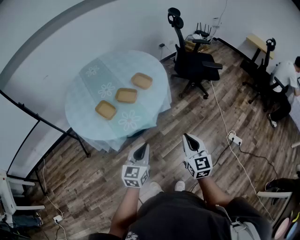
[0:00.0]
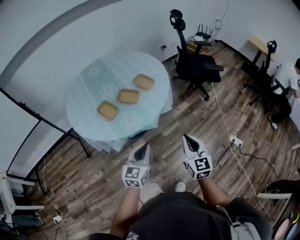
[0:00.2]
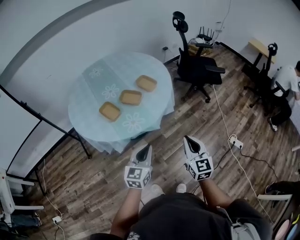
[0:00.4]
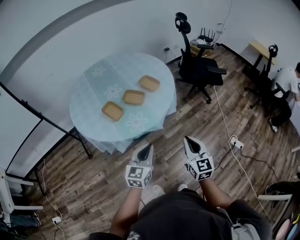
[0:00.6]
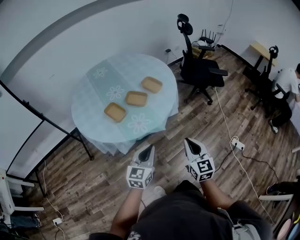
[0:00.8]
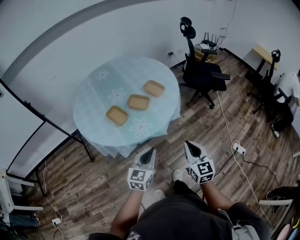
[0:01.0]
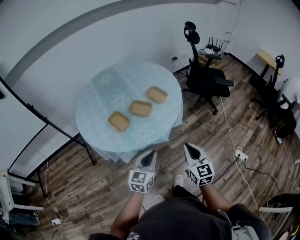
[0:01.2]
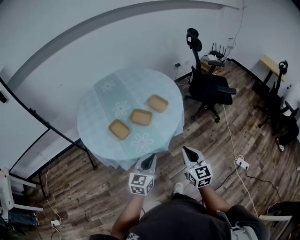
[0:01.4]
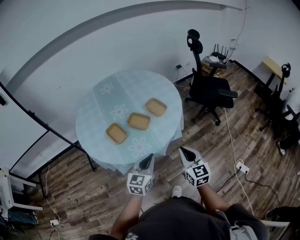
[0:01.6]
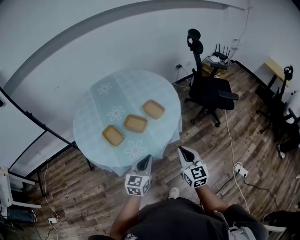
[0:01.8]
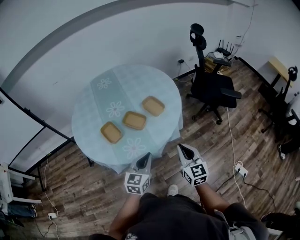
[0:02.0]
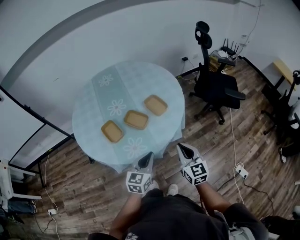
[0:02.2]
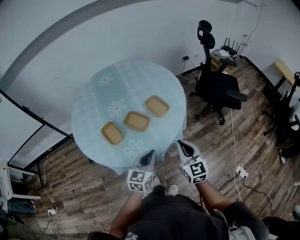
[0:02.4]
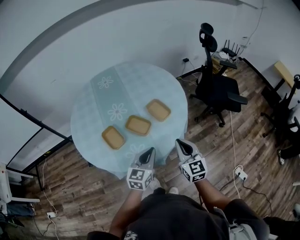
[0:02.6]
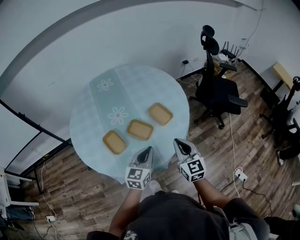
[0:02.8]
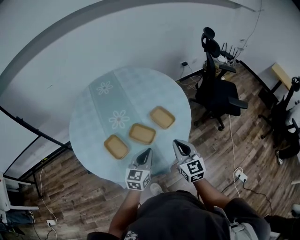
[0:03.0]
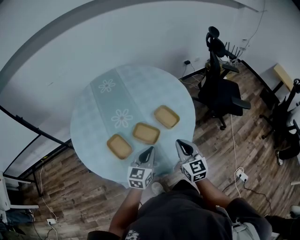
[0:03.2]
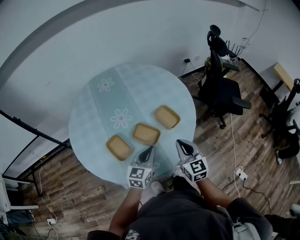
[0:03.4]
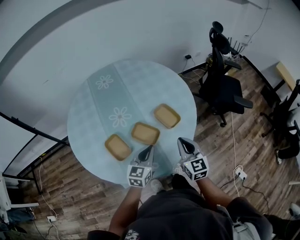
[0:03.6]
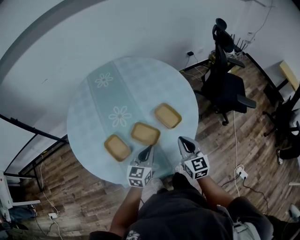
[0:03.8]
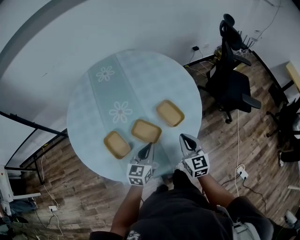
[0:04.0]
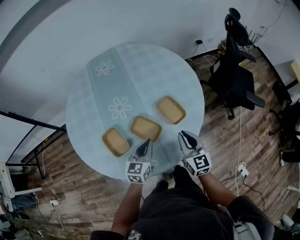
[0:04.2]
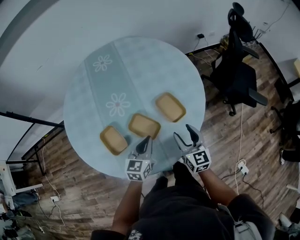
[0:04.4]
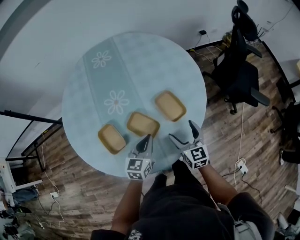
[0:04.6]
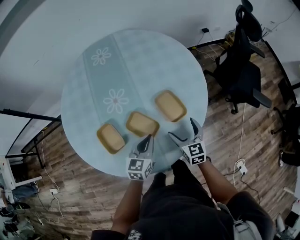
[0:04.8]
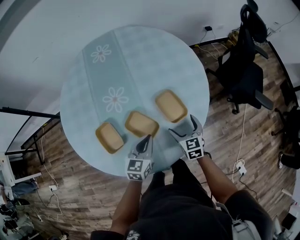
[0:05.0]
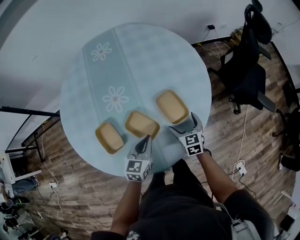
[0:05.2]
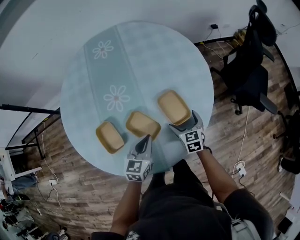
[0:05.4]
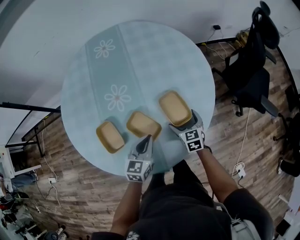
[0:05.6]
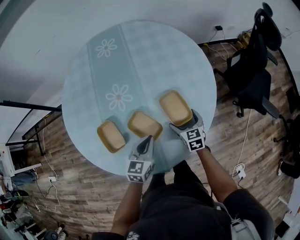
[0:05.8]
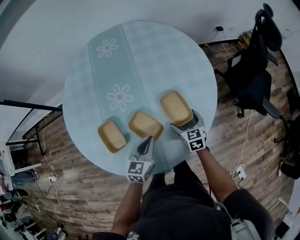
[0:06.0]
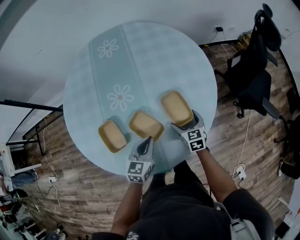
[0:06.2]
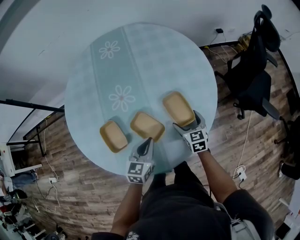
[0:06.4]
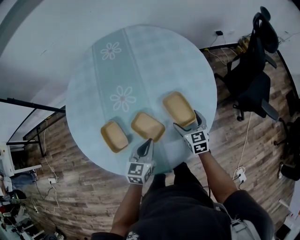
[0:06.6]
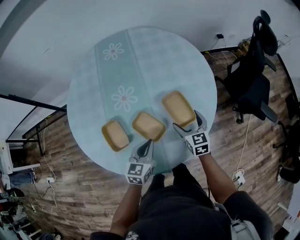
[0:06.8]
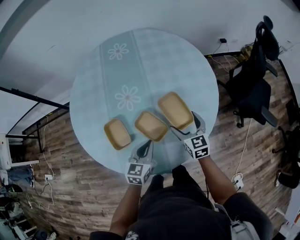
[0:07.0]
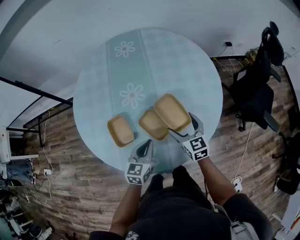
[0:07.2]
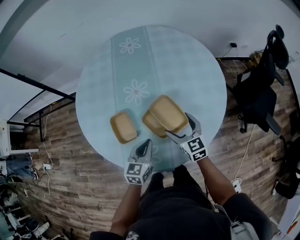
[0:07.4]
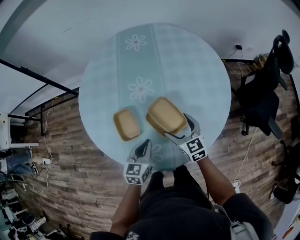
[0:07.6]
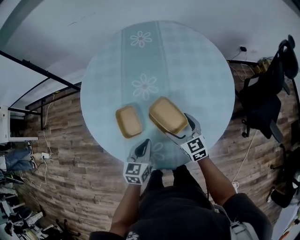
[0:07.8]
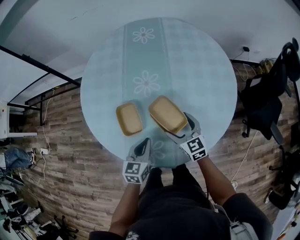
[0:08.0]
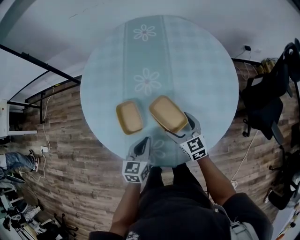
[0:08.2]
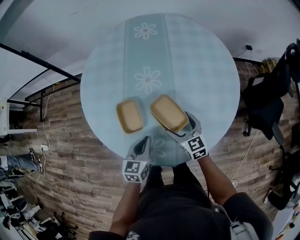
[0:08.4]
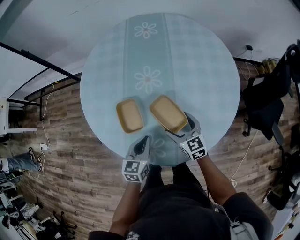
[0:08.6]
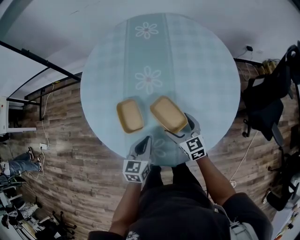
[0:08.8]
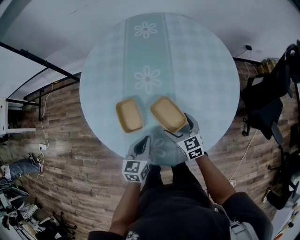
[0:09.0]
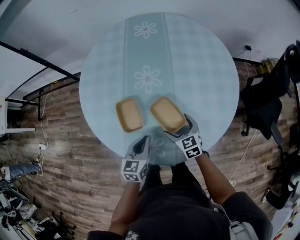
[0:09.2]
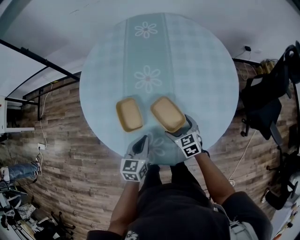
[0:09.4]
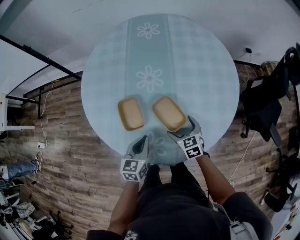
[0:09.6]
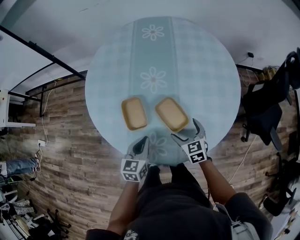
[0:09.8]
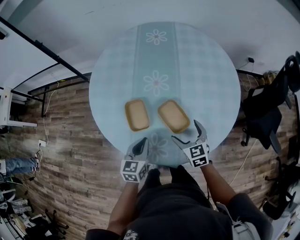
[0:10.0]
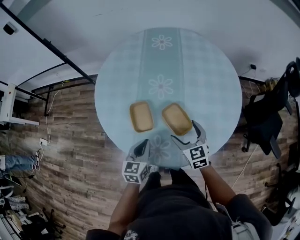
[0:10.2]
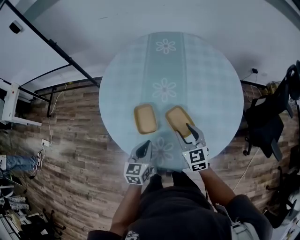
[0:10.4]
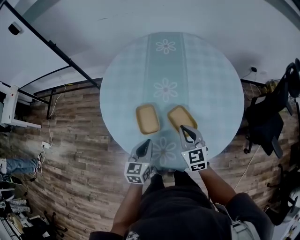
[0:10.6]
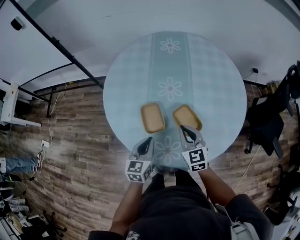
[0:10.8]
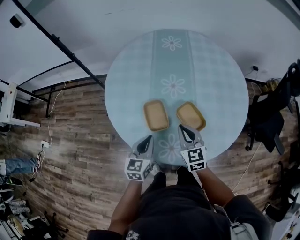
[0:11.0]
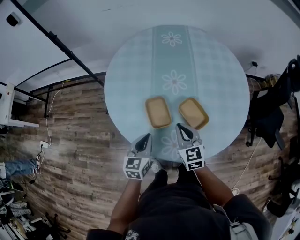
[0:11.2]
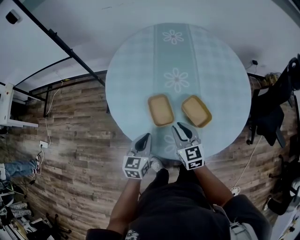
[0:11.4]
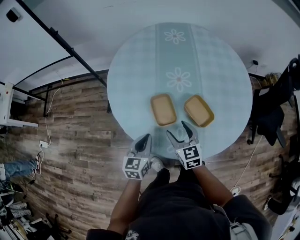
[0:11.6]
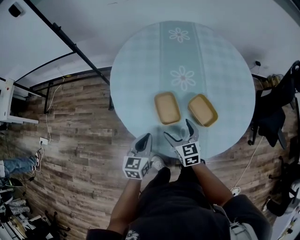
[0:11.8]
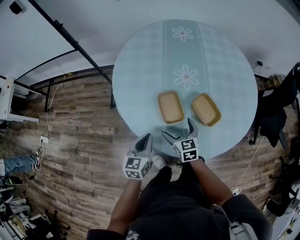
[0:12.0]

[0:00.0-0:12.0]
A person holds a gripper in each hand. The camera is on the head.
0:00.0 to 0:01.6: The left gripper goes approximately 10 cm forward. Meanwhile the right gripper goes approximately 15 cm forward and to the left.
0:01.6 to 0:03.0: Both grippers travel together forward, some 20 cm.
0:03.0 to 0:04.4: The two grippers go approximately 15 cm forward and downward. The right gripper opens.
0:04.4 to 0:06.0: The right gripper shifts approximately 20 cm downward and forward, rotates approximately 30 degrees, and opens up.
0:06.0 to 0:07.6: The left gripper shifts about 10 cm to the left and backward. Meanwhile the right gripper travels to the left and upward by some 15 cm, and turns by about 20 degrees.
0:07.6 to 0:09.0: The right gripper goes some 5 cm downward.
0:09.0 to 0:10.4: The left gripper travels to the left by roughly 5 cm; the right gripper goes approximately 10 cm upward, and closes its fingers.
0:10.4 to 0:12.0: The left gripper travels to the left by about 15 cm. Meanwhile the right gripper is displaced to the left and downward by about 20 cm, and opens its fingers.

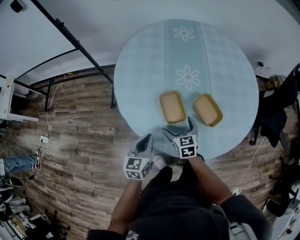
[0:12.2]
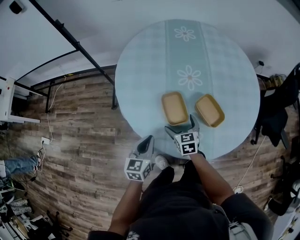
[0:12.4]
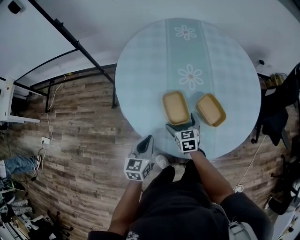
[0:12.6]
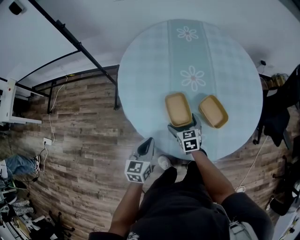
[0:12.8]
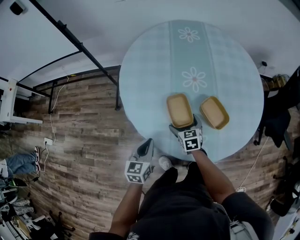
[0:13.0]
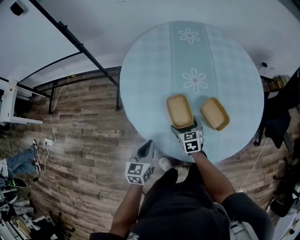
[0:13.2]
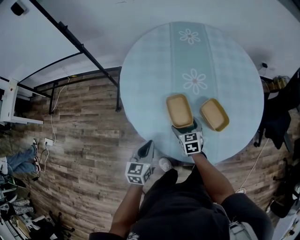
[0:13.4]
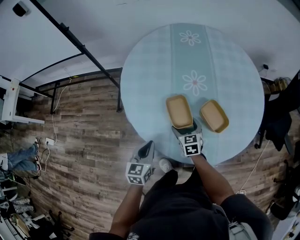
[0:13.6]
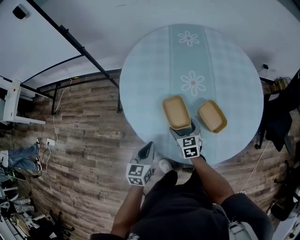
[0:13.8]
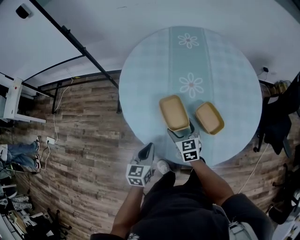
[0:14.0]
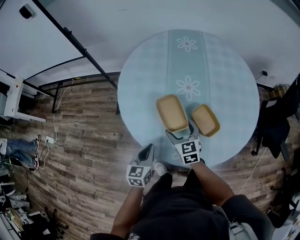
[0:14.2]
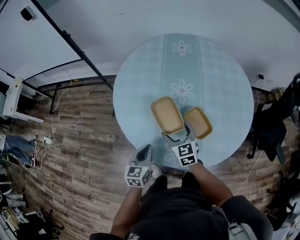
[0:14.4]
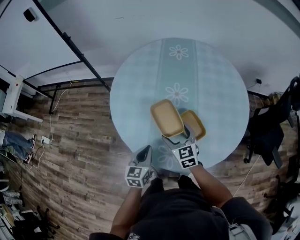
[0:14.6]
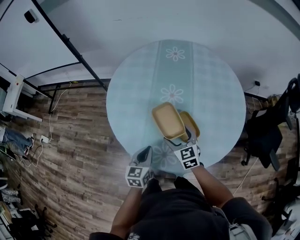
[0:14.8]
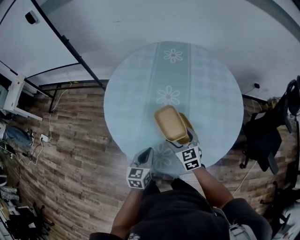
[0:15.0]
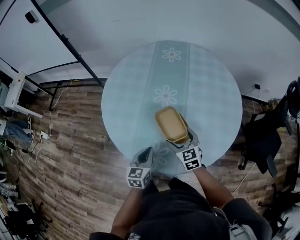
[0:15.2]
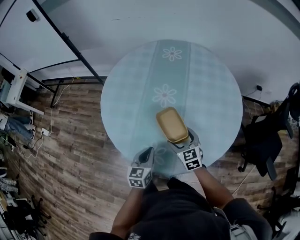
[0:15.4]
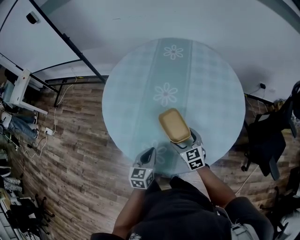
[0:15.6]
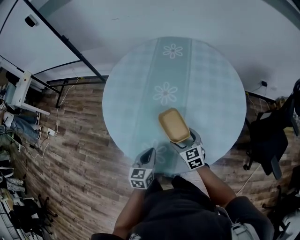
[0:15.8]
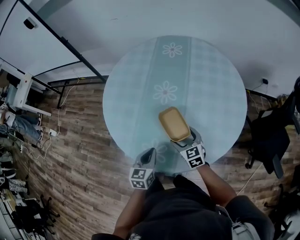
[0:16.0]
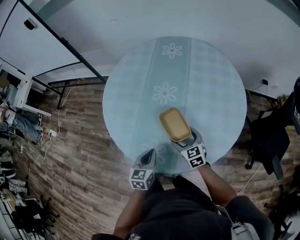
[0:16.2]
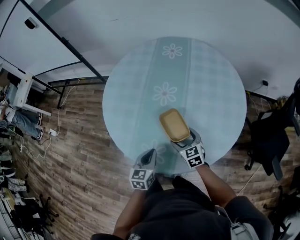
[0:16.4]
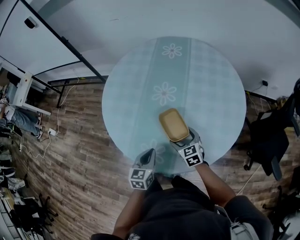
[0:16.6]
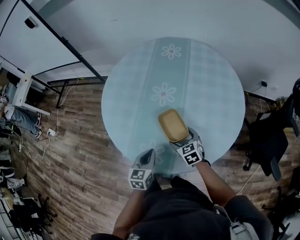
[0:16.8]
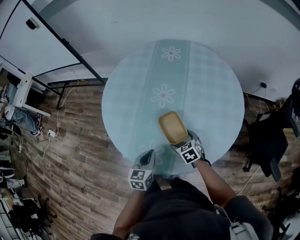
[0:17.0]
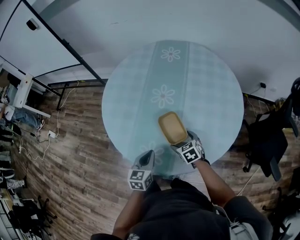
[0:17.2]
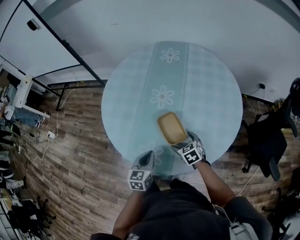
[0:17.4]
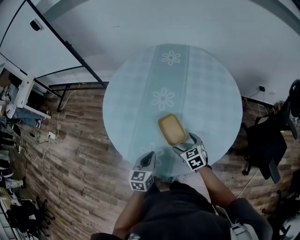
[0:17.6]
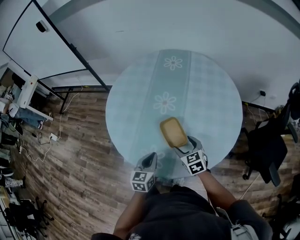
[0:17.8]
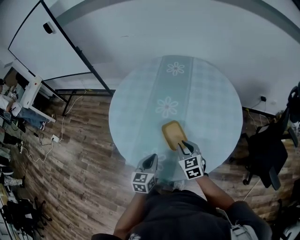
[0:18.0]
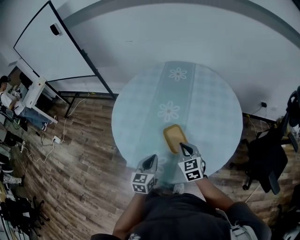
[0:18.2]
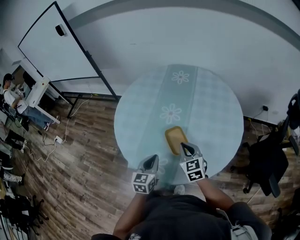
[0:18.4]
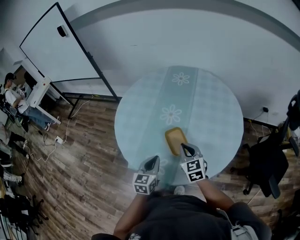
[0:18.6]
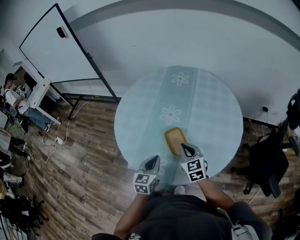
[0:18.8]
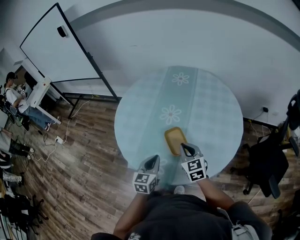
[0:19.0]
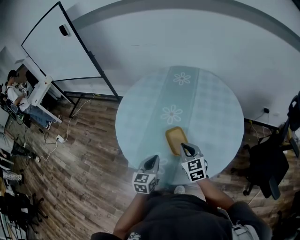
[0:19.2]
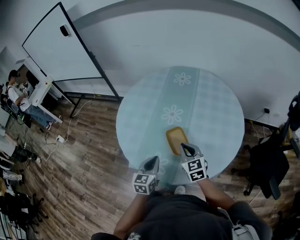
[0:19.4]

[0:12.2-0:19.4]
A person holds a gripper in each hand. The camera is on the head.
0:12.2 to 0:13.6: The grippers move only a little.
0:13.6 to 0:15.0: The right gripper heads to the right and upward, covering roughly 20 cm, and rotates some 20 degrees. The left gripper is displaced to the right by roughly 20 cm.
0:15.0 to 0:16.6: The left gripper is displaced to the right by approximately 5 cm; the right gripper travels downward and to the right by roughly 10 cm.
0:16.6 to 0:18.0: The right gripper is displaced upward by some 10 cm, and closes.
0:18.0 to 0:19.4: The right gripper moves about 5 cm.

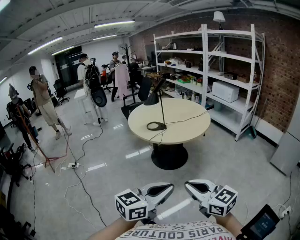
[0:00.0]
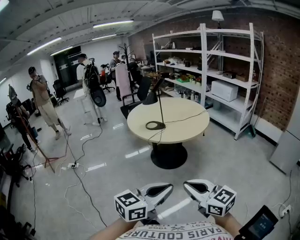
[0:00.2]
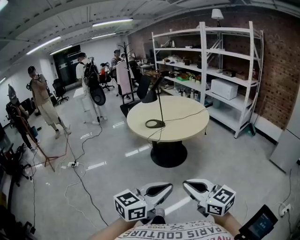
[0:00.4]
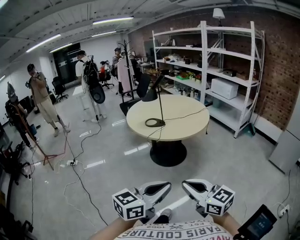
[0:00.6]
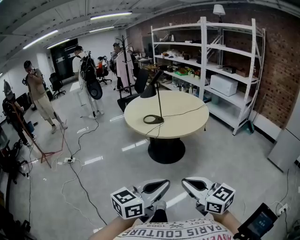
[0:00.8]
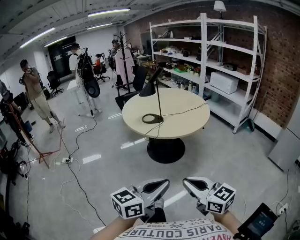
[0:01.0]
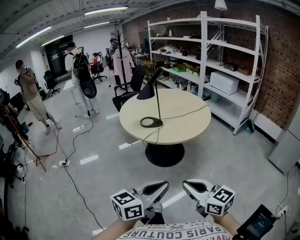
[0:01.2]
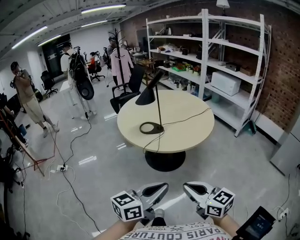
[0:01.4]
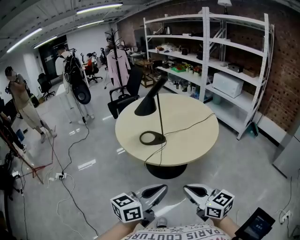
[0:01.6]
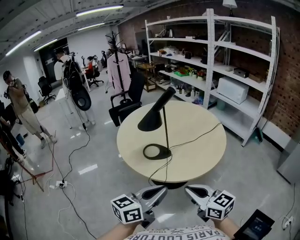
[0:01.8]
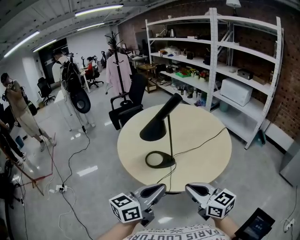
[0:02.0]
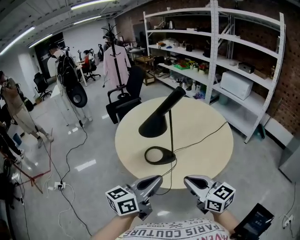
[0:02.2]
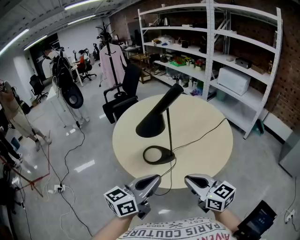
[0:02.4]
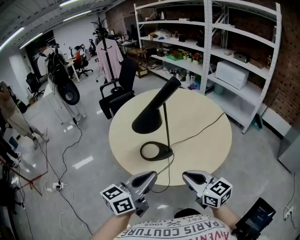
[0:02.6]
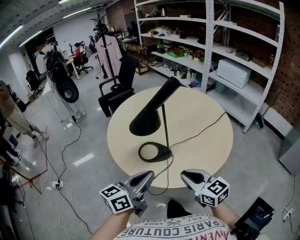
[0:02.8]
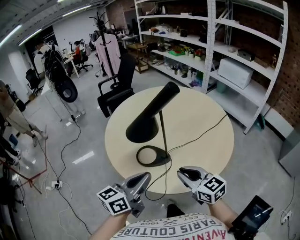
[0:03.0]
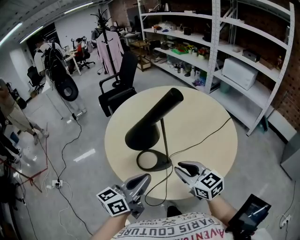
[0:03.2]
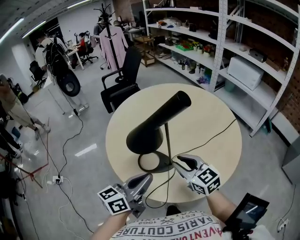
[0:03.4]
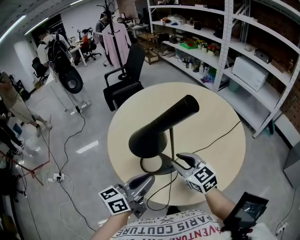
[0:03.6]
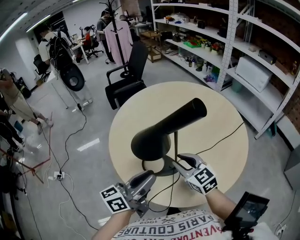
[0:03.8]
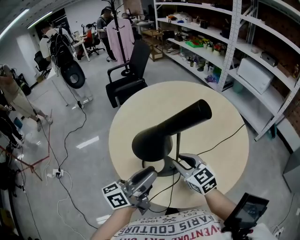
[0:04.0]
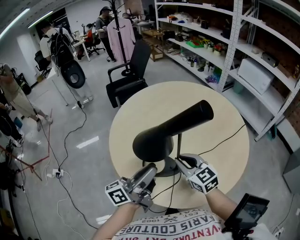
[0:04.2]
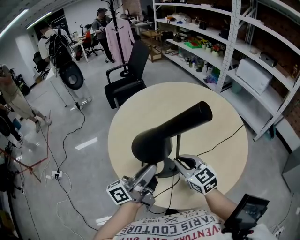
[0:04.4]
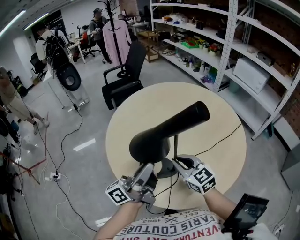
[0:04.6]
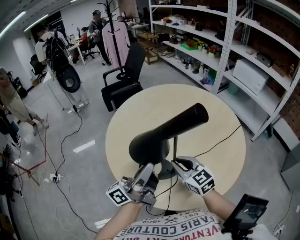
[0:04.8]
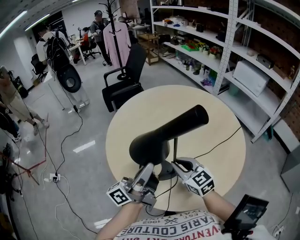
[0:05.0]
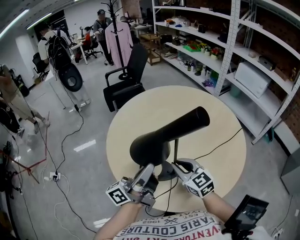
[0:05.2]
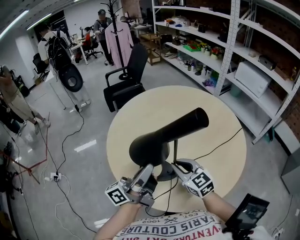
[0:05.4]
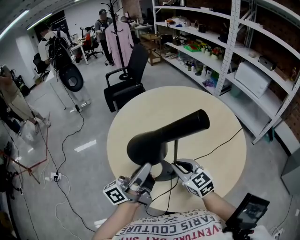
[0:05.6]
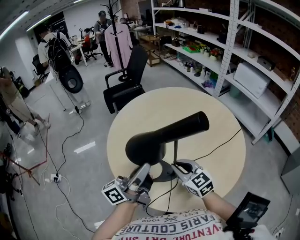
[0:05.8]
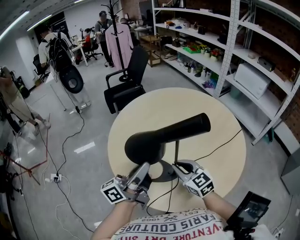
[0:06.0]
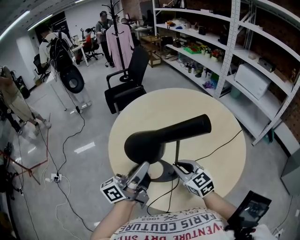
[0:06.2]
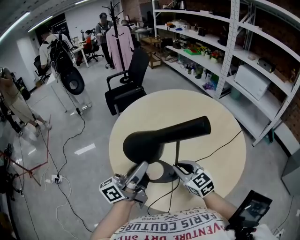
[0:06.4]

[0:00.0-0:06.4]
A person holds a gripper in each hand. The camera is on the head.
0:00.0 to 0:01.6: Both grippers travel together forward, about 30 cm.
0:01.6 to 0:03.2: The grippers both shift forward by some 30 cm.
0:03.2 to 0:04.8: Both grippers move forward, approximately 10 cm. The left gripper angles its fingers upward, by about 30 degrees, and opens up.
0:04.8 to 0:06.4: The grippers move only a little.
